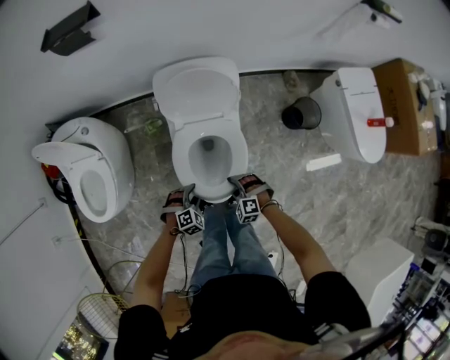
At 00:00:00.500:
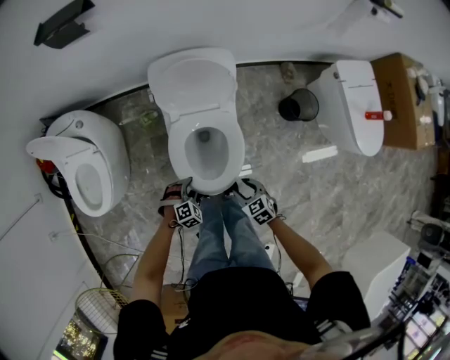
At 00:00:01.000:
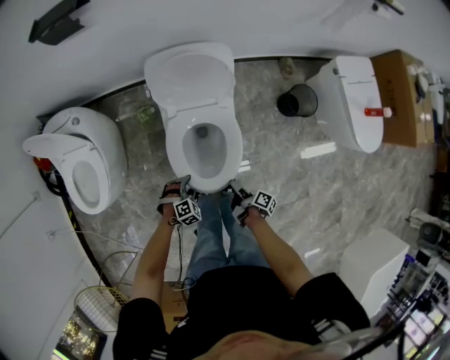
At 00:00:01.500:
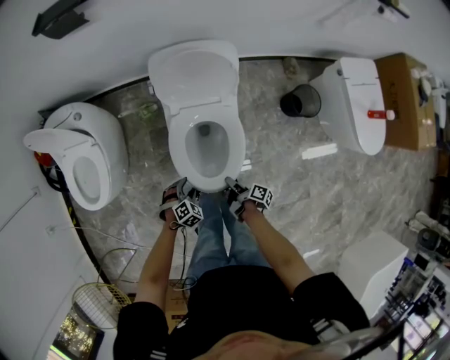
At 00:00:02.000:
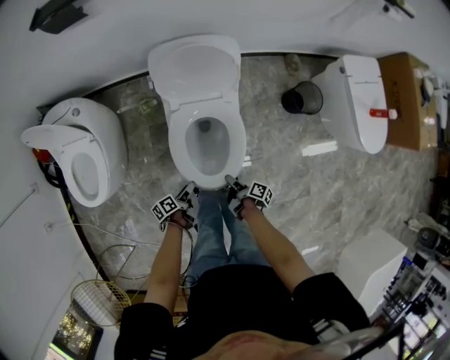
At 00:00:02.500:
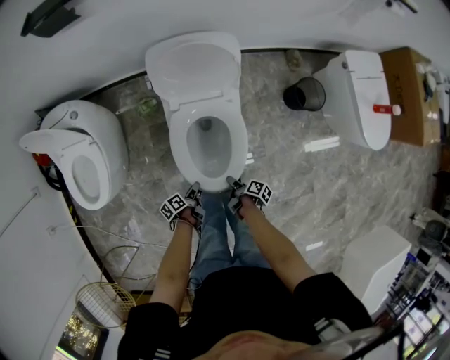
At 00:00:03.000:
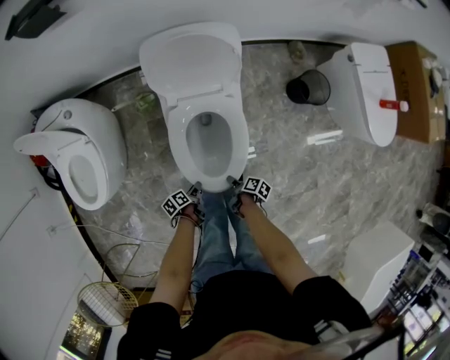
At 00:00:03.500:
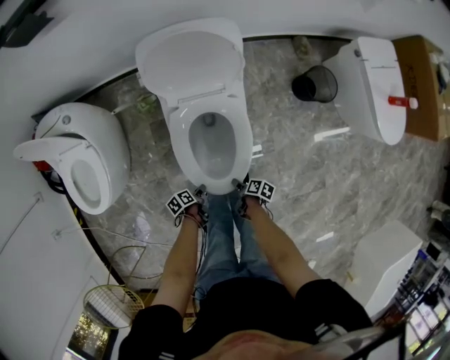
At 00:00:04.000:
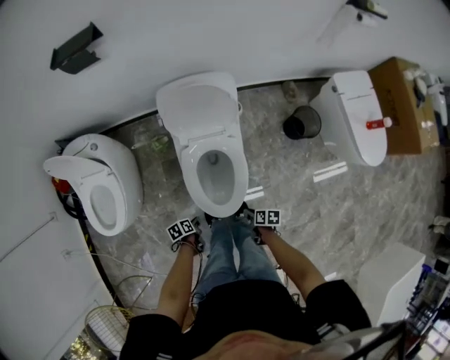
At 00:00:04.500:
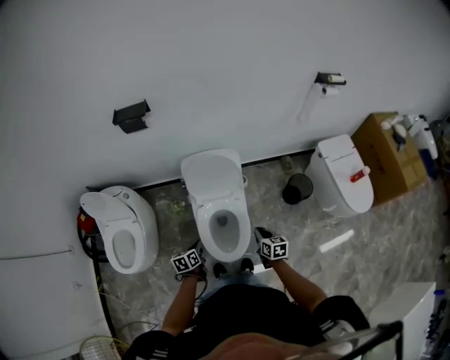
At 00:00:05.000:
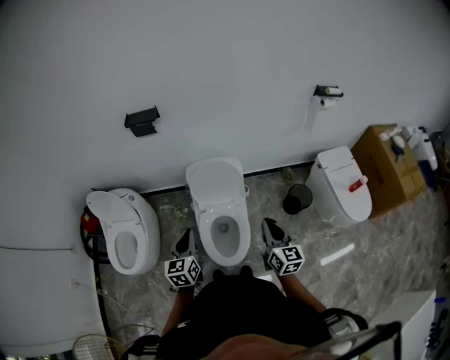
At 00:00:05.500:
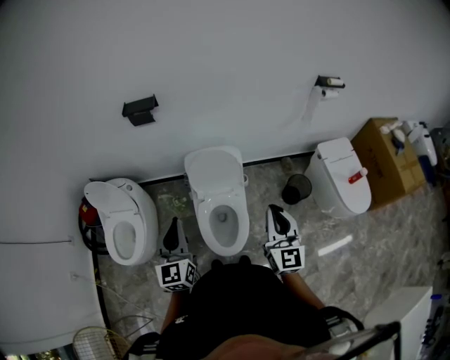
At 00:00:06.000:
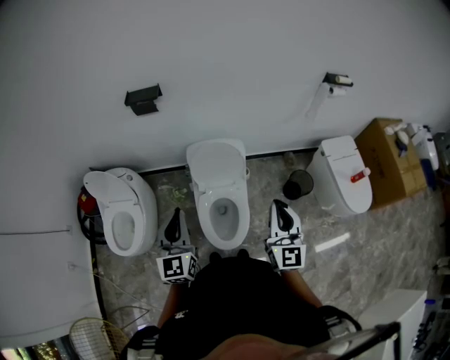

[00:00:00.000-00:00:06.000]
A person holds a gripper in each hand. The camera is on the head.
00:00:00.000 to 00:00:02.000: The right gripper shifts by roughly 5 cm, and rolls clockwise, seen from behind, by about 150 degrees. Meanwhile the left gripper shifts by some 5 cm, and rotates around the line of its fingers by approximately 120 degrees, counterclockwise from behind.
00:00:02.000 to 00:00:04.000: The right gripper reaches approximately 10 cm downward, then returns, and rotates roughly 40 degrees. Meanwhile the left gripper reaches roughly 10 cm downward, then returns, rotates about 30 degrees, and closes its fingers.
00:00:04.000 to 00:00:06.000: The grippers both shift upward by roughly 60 cm. The left gripper angles its fingers upward, by about 60 degrees; the right gripper points its fingers about 60 degrees further upward.

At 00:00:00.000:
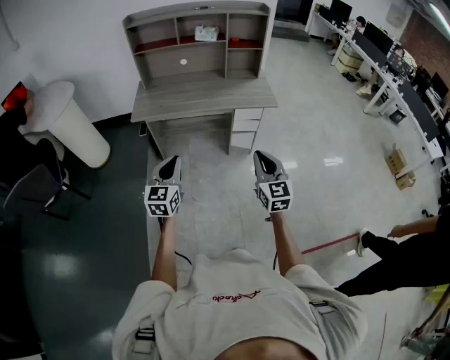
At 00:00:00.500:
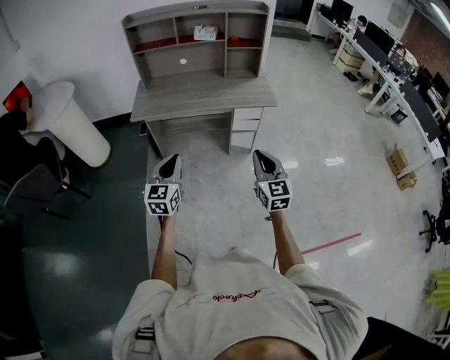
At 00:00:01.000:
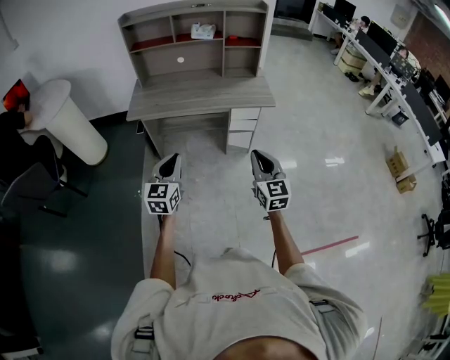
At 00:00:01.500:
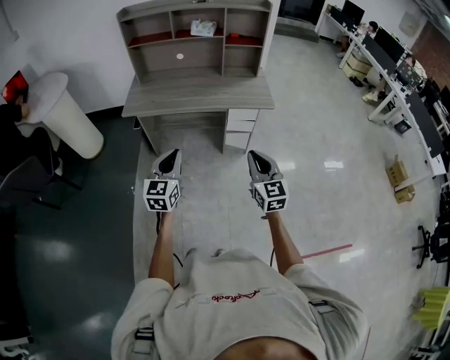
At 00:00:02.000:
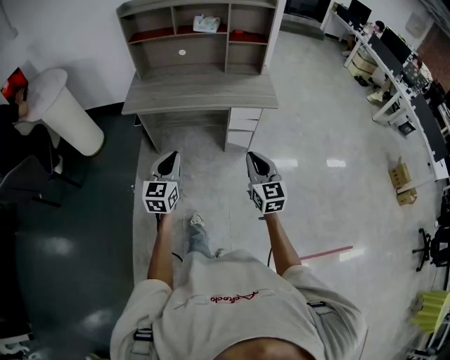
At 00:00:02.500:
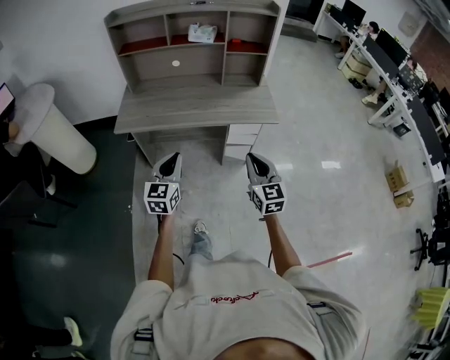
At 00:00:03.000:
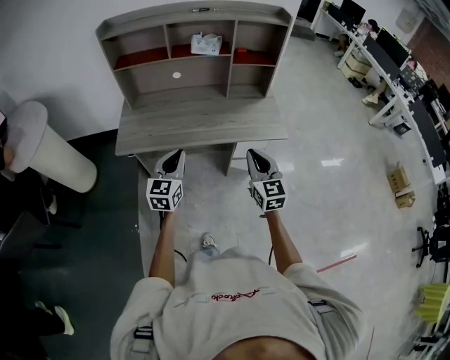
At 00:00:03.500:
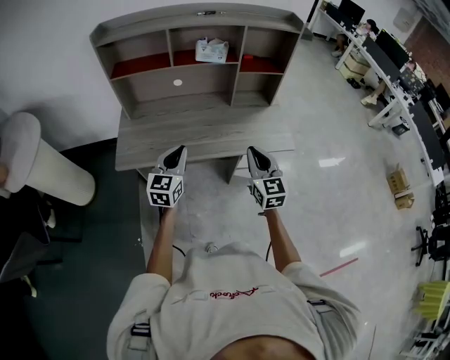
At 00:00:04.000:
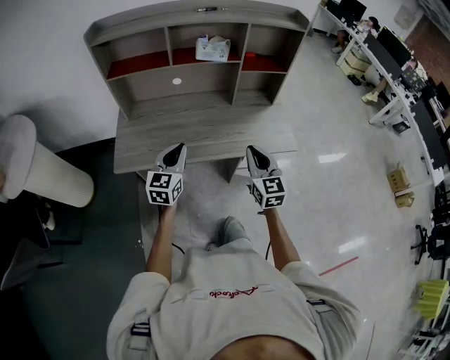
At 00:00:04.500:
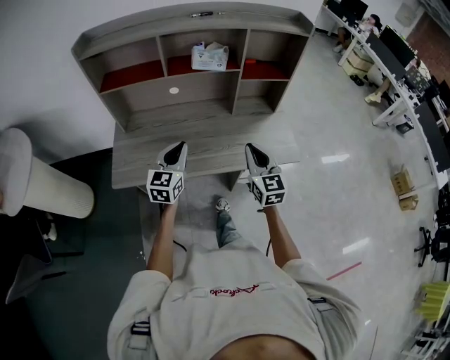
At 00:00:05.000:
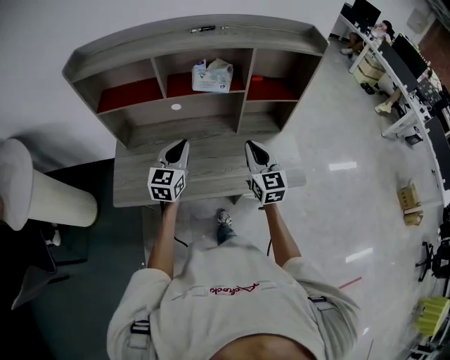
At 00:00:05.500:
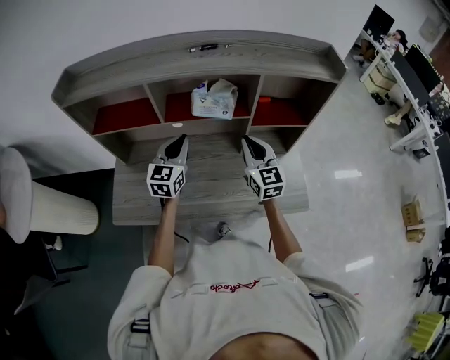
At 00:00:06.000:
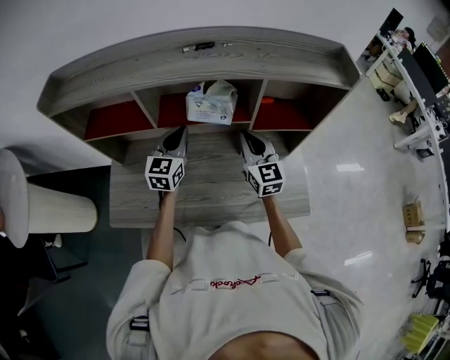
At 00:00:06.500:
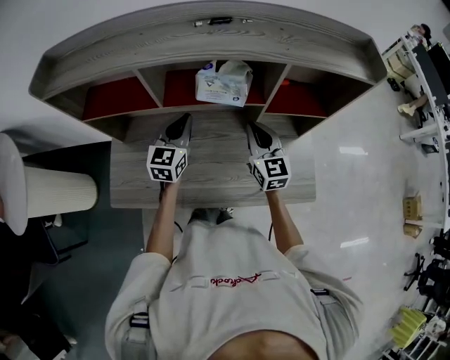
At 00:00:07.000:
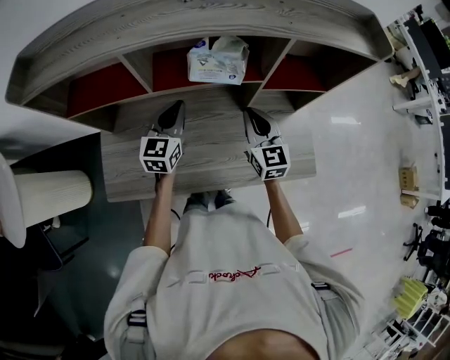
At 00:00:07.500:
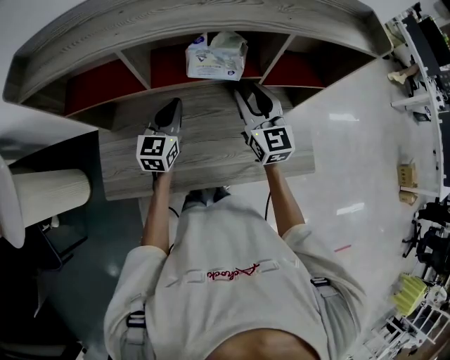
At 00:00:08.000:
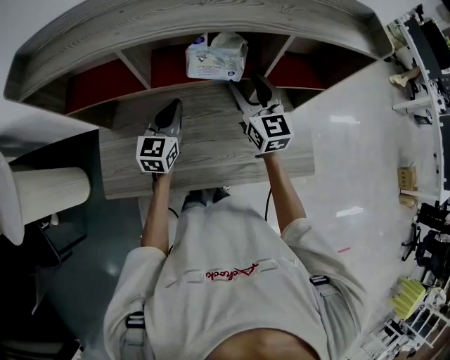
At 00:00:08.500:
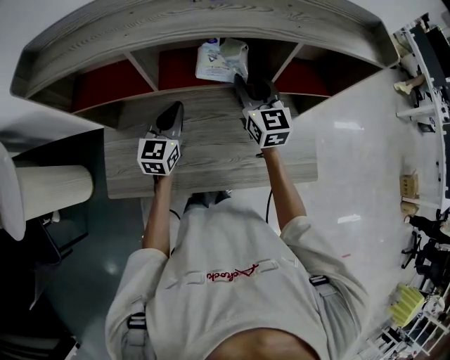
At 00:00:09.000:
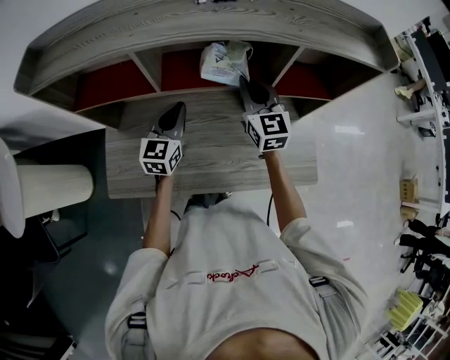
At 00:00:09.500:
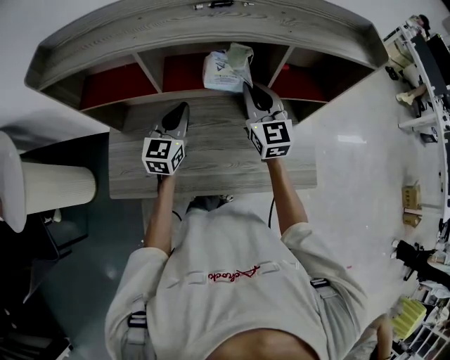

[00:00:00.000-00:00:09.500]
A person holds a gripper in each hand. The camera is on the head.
00:00:00.000 to 00:00:02.000: The left gripper shifts some 10 cm to the right and forward. The right gripper travels forward and to the right by some 10 cm.
00:00:02.000 to 00:00:04.000: Both grippers travel together forward, some 40 cm.
00:00:04.000 to 00:00:05.500: Both grippers travel together forward, roughly 35 cm.
00:00:05.500 to 00:00:07.500: The left gripper heads downward, covering roughly 5 cm. Meanwhile the right gripper moves forward, roughly 5 cm, and opens its fingers.
00:00:07.500 to 00:00:09.500: The right gripper closes.

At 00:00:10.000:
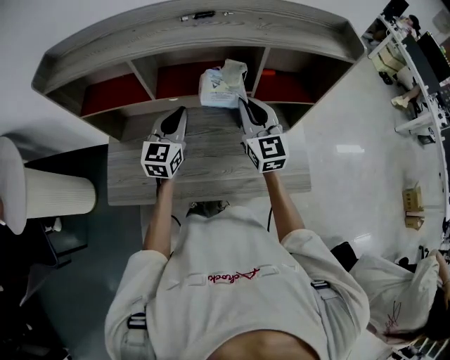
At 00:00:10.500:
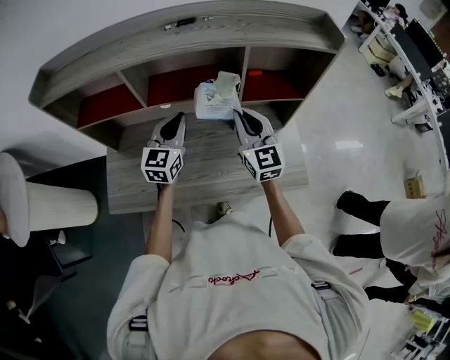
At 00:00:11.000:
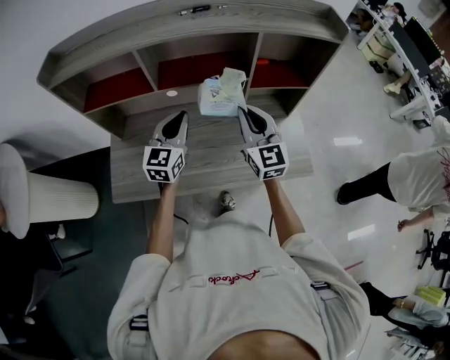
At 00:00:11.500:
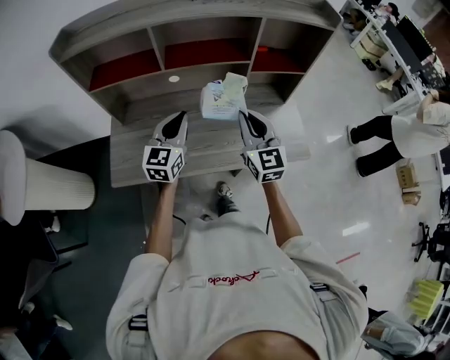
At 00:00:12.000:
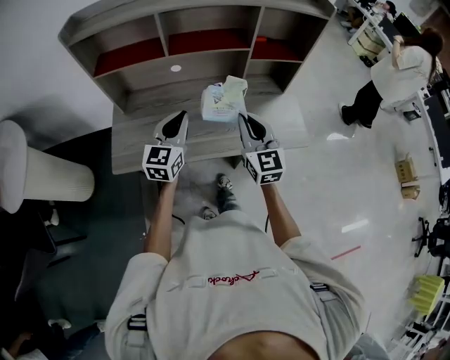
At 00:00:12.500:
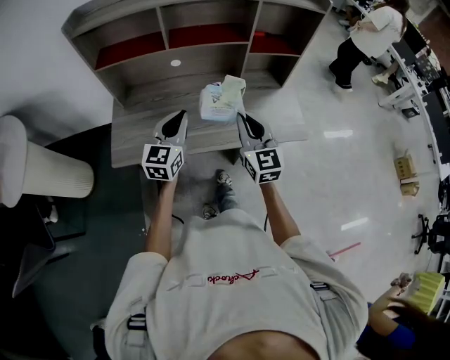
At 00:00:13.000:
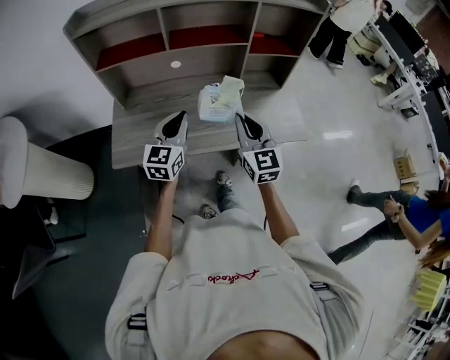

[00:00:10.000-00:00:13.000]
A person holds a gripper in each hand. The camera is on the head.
00:00:10.000 to 00:00:11.500: Both grippers travel together backward, about 15 cm.
00:00:11.500 to 00:00:13.000: The two grippers go some 10 cm backward.

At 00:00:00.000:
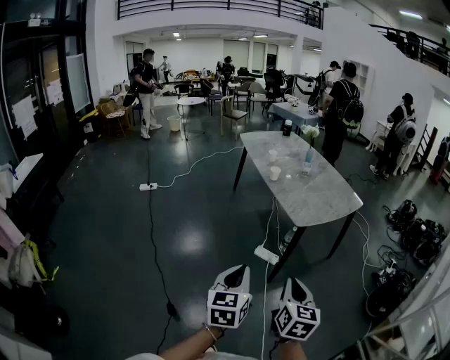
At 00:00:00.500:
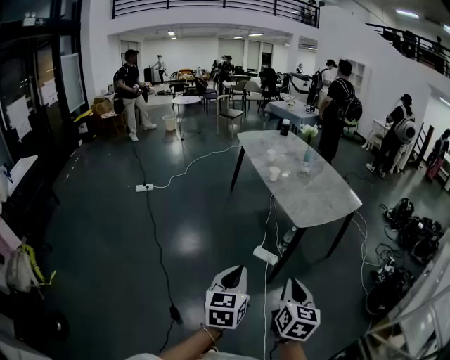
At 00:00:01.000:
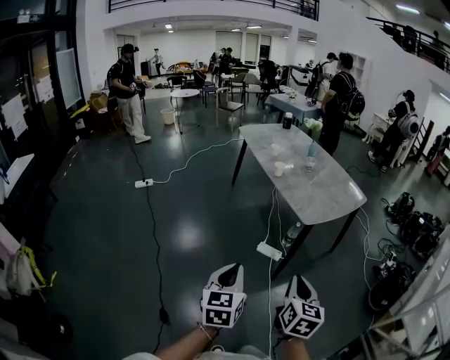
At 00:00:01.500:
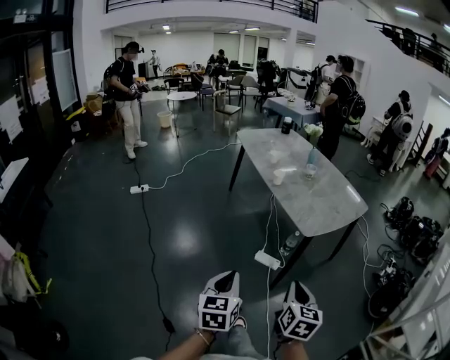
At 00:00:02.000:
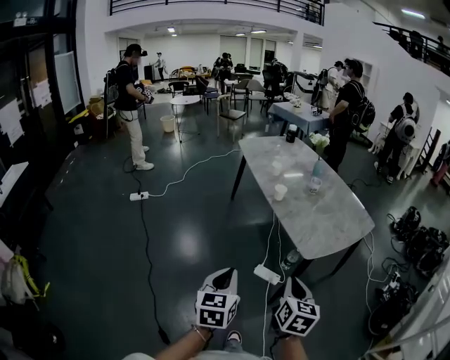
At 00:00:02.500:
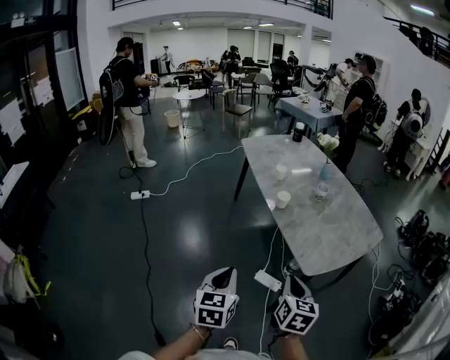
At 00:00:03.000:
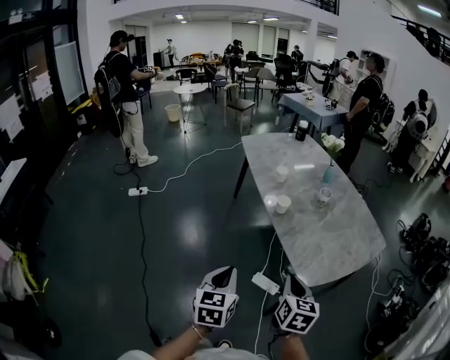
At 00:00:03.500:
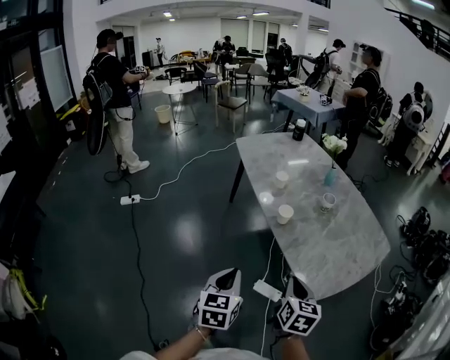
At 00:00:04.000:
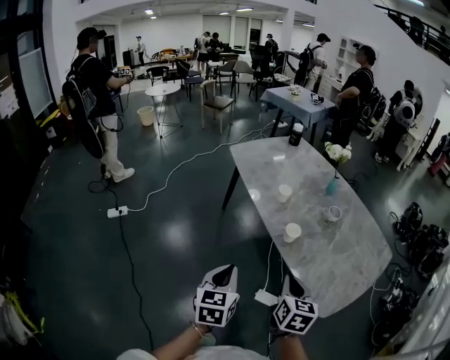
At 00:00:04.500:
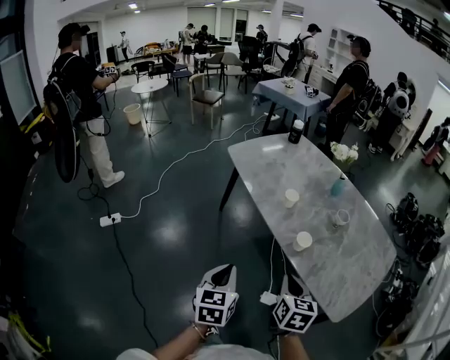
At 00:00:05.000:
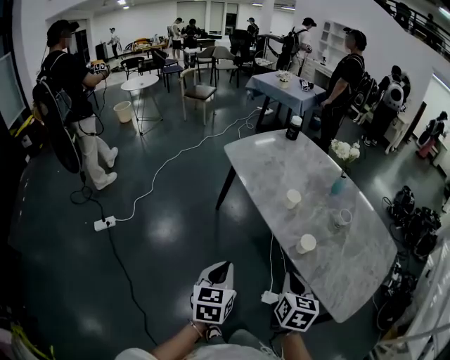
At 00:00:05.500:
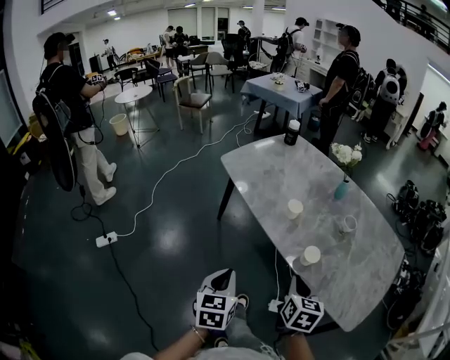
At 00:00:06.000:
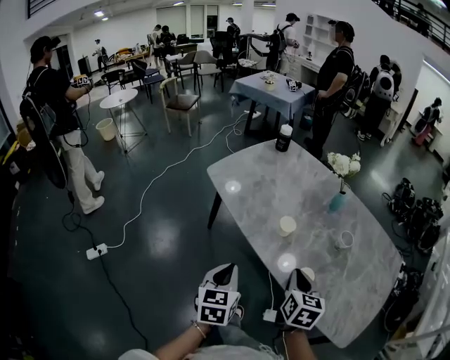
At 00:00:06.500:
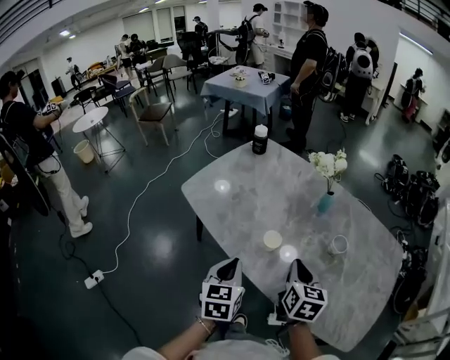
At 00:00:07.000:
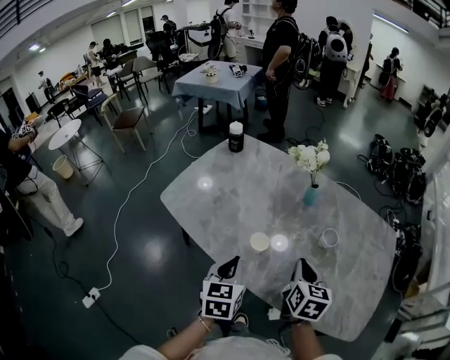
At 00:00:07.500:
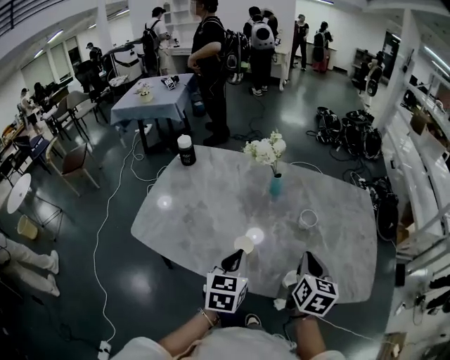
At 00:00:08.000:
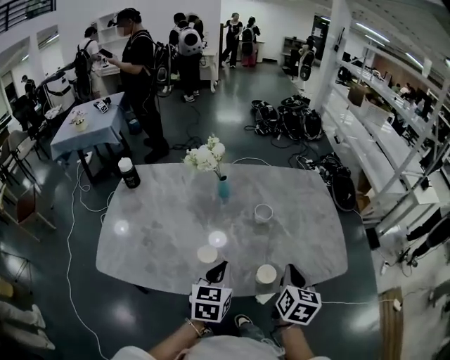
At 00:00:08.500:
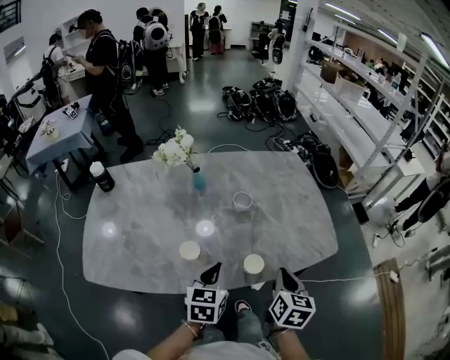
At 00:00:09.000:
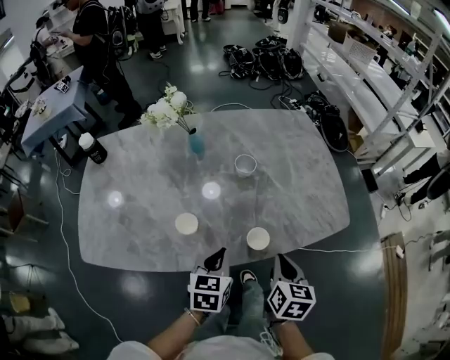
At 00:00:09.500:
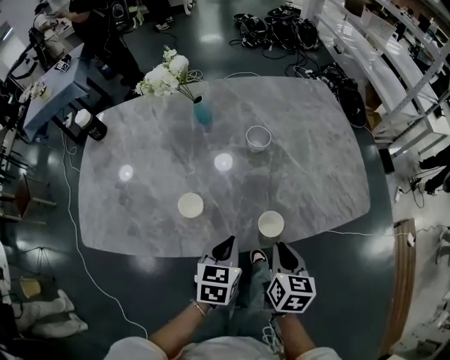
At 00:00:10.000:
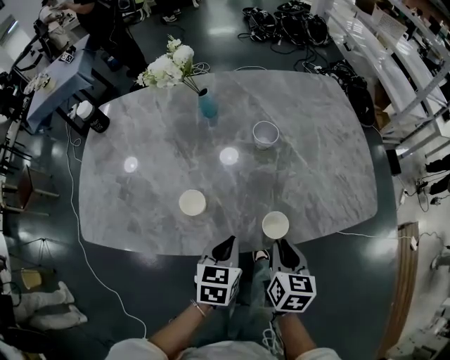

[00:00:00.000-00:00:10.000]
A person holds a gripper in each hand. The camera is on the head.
00:00:00.000 to 00:00:02.000: The right gripper shifts some 25 cm forward. The left gripper moves forward and to the left, about 25 cm.
00:00:02.000 to 00:00:04.000: The grippers both shift forward by about 35 cm.
00:00:04.000 to 00:00:06.000: Both grippers travel together forward, approximately 25 cm.
00:00:06.000 to 00:00:08.000: The left gripper ends up approximately 25 cm from where it was, and turns by about 60 degrees. Meanwhile the right gripper ends up approximately 10 cm from where it was, and swivels about 60 degrees.
00:00:08.000 to 00:00:10.000: The grippers both shift downward by some 15 cm.
